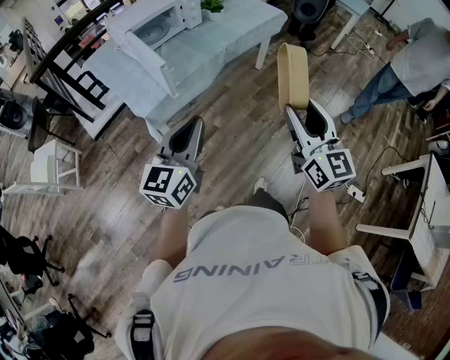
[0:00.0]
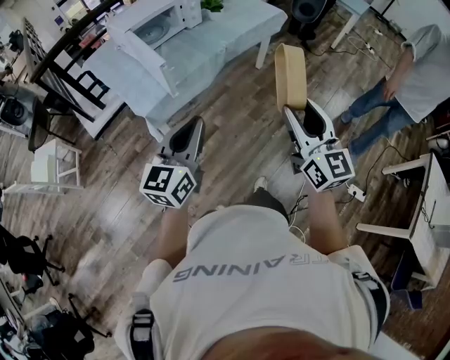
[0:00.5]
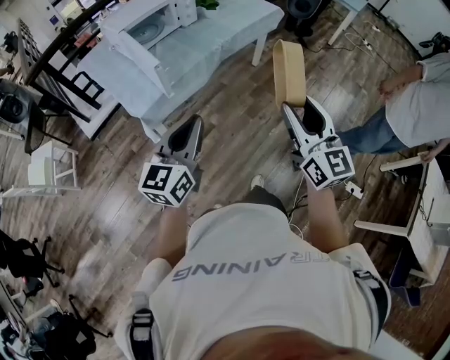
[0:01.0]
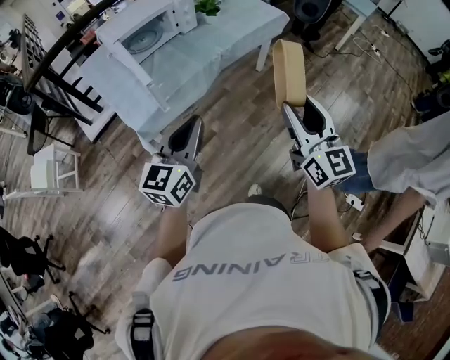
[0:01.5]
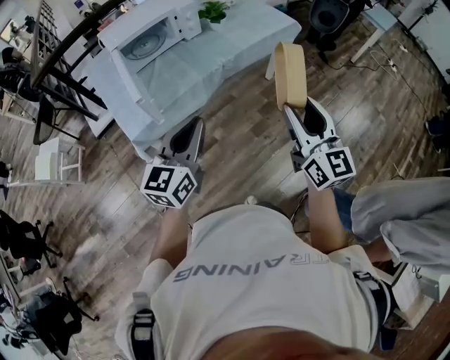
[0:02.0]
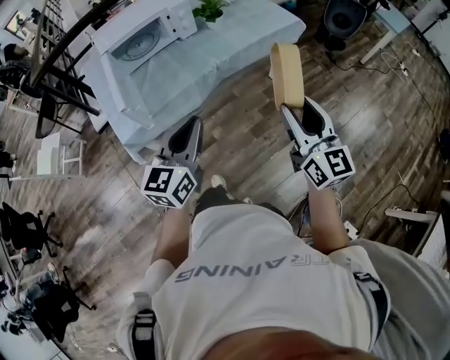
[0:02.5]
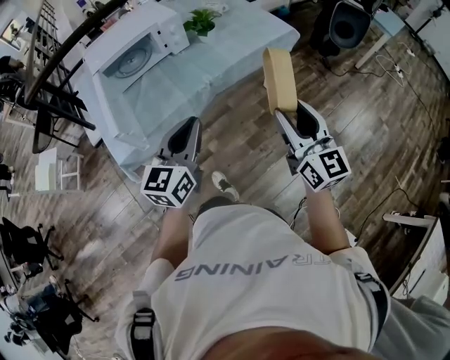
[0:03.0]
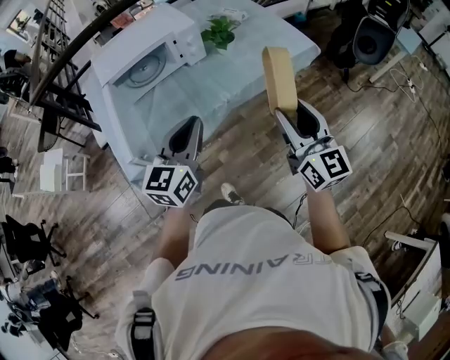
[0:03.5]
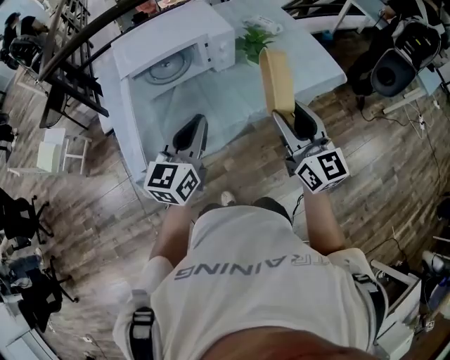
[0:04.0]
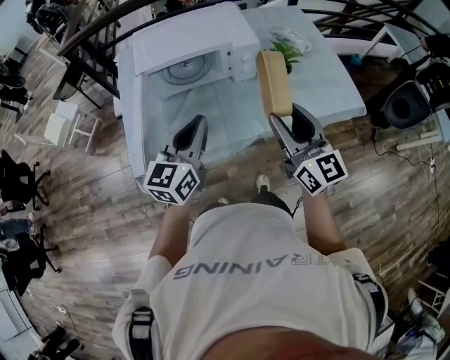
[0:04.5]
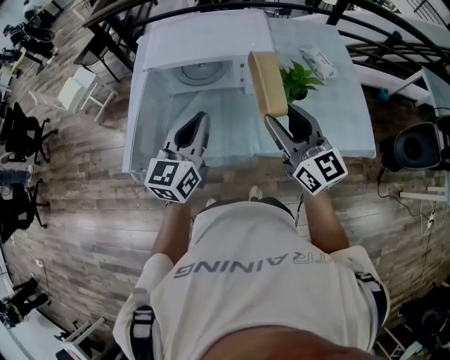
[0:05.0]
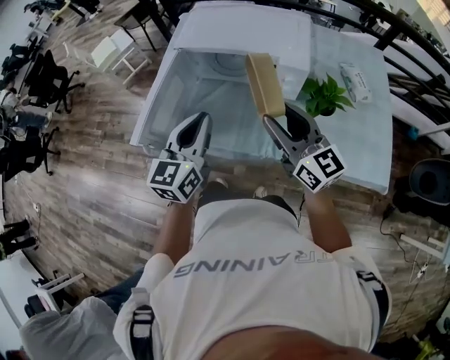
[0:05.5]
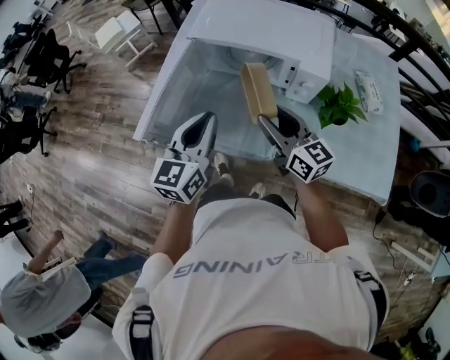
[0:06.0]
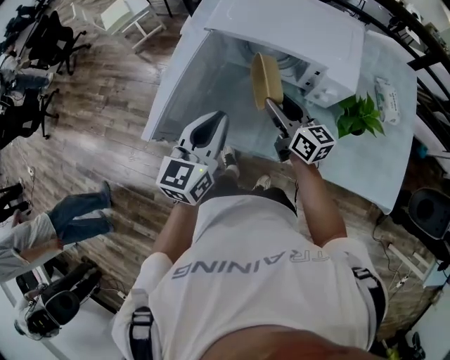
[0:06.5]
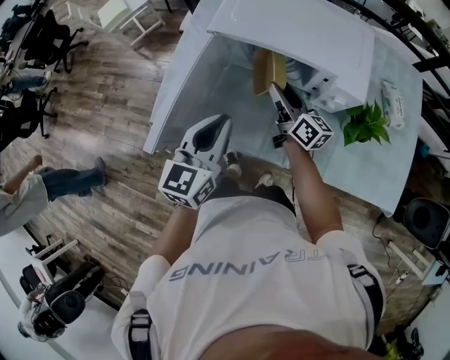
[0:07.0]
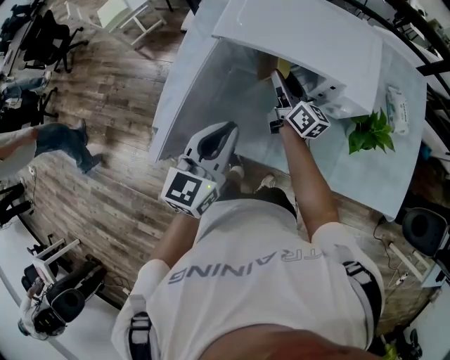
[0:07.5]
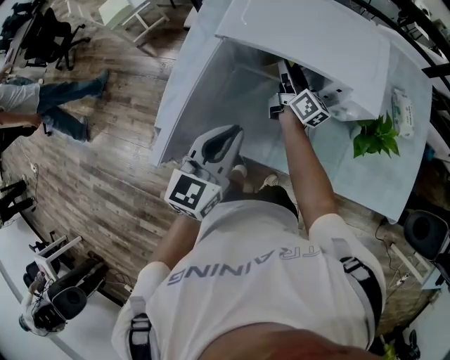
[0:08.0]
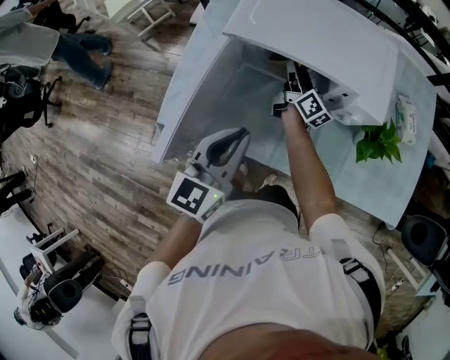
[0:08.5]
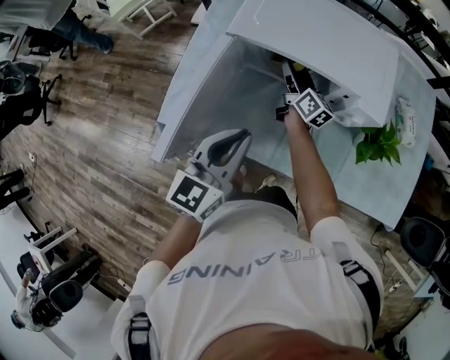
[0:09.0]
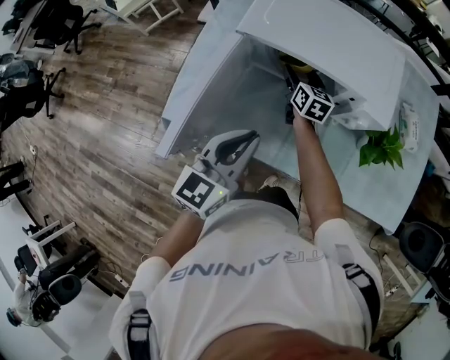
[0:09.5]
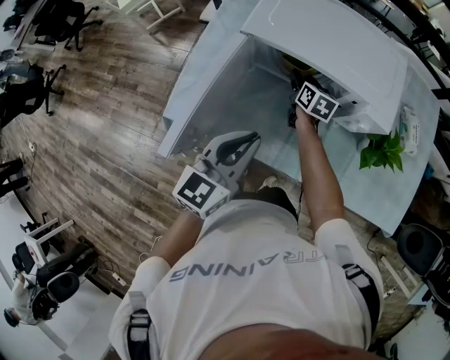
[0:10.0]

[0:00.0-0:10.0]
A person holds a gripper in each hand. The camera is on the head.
0:00.0 to 0:02.0: Both grippers travel together forward and to the right, about 20 cm.
0:02.0 to 0:04.0: The grippers both shift forward by approximately 30 cm.
0:04.0 to 0:06.0: The right gripper moves roughly 25 cm, and swivels roughly 60 degrees. The left gripper moves roughly 10 cm, and rotates roughly 40 degrees.
0:06.0 to 0:08.0: The left gripper travels forward by about 5 cm. The right gripper moves forward and downward, roughly 30 cm, and changes its angle by approximately 40 degrees.
0:08.0 to 0:10.0: The right gripper moves downward, about 5 cm, tilts its fingers roughly 30 degrees downward, and opens, then closes once more.

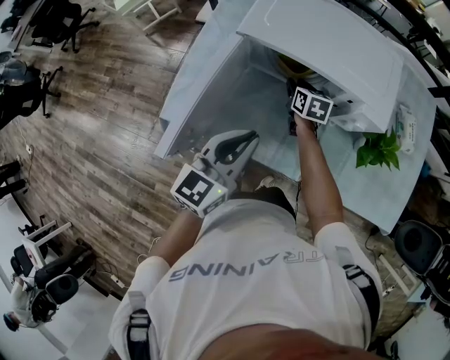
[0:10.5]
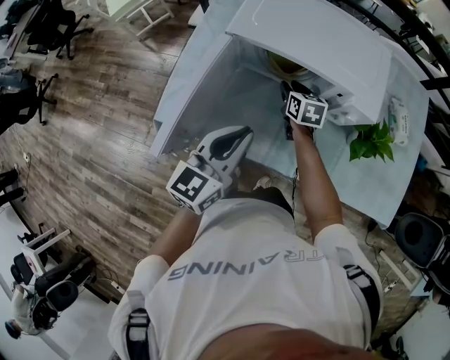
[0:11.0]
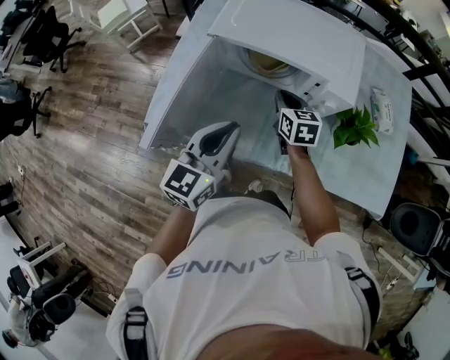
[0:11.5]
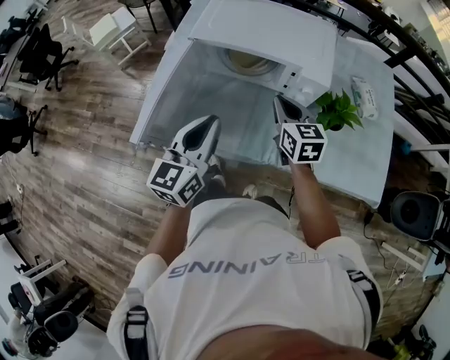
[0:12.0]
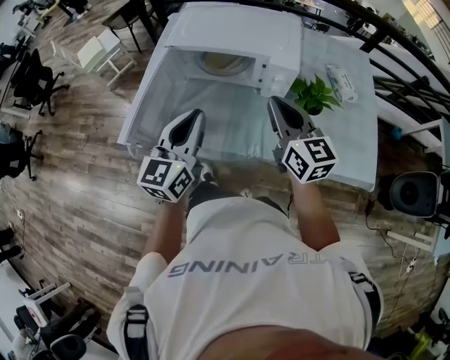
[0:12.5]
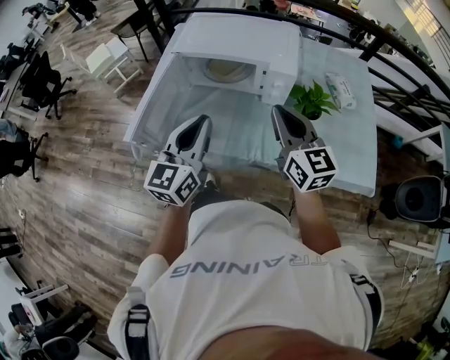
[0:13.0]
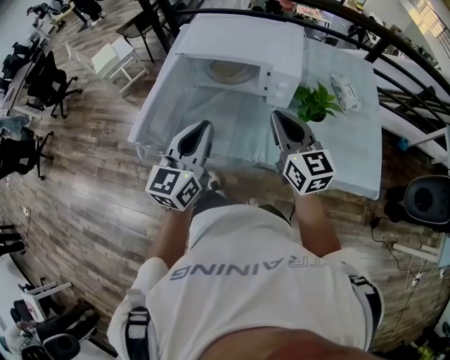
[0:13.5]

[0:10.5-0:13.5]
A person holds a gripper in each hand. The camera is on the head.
0:10.5 to 0:12.0: The right gripper is displaced upward, backward and to the right by roughly 25 cm, turns by some 20 degrees, and closes up. Meanwhile the left gripper shifts by some 5 cm.
0:12.0 to 0:13.5: The left gripper shifts approximately 5 cm backward; the right gripper moves backward and upward, roughly 15 cm.

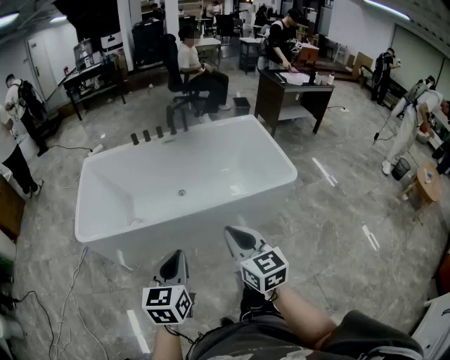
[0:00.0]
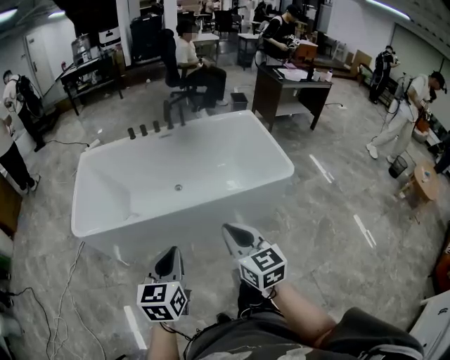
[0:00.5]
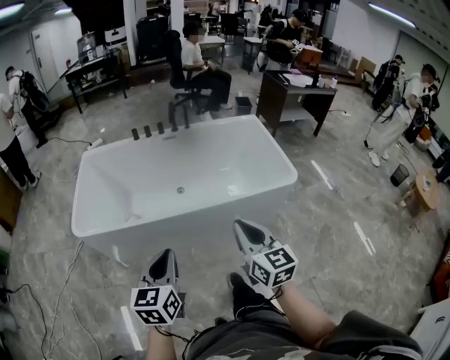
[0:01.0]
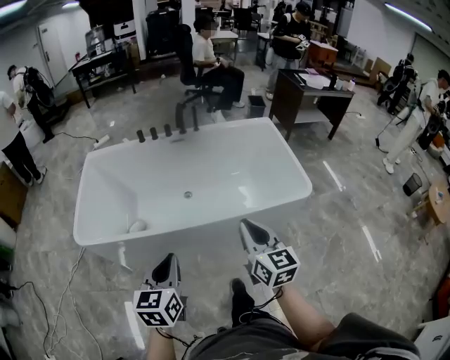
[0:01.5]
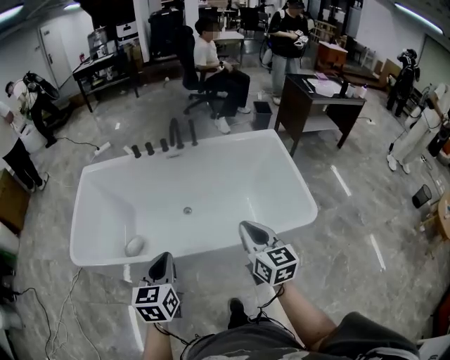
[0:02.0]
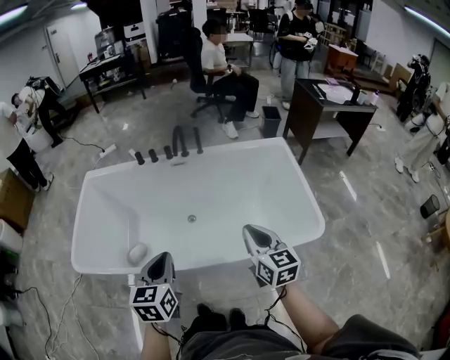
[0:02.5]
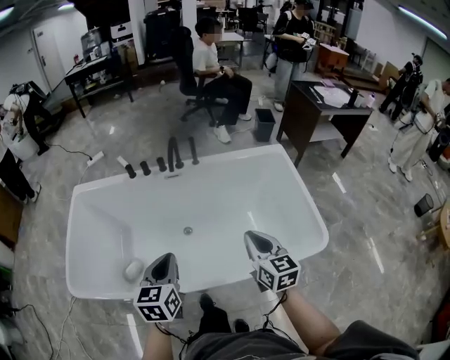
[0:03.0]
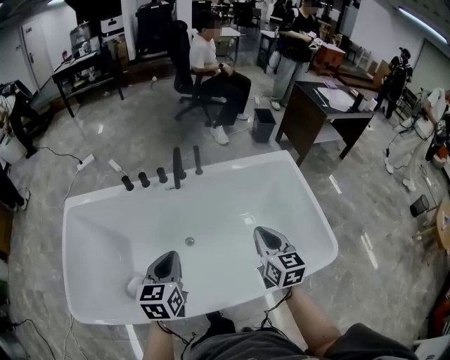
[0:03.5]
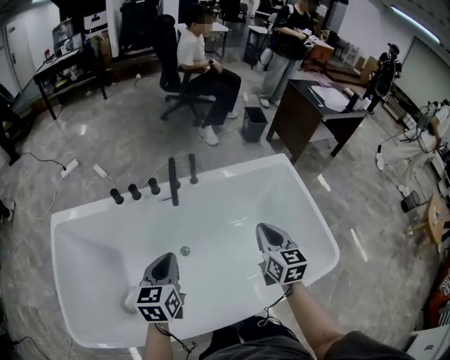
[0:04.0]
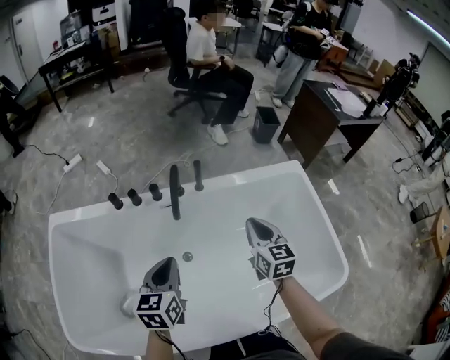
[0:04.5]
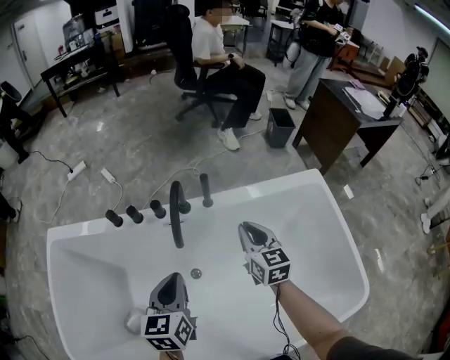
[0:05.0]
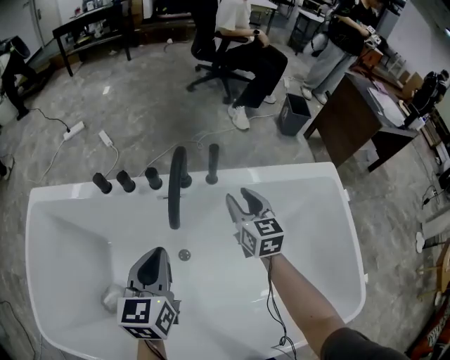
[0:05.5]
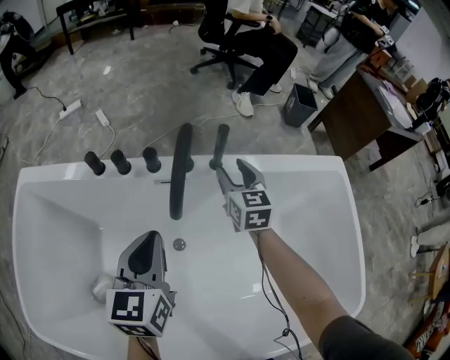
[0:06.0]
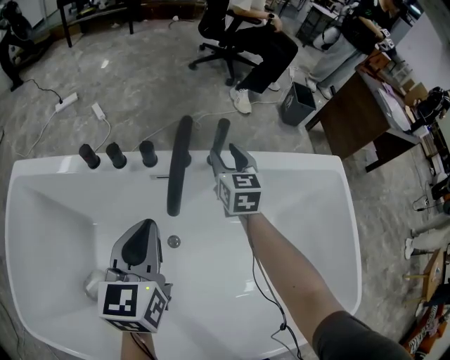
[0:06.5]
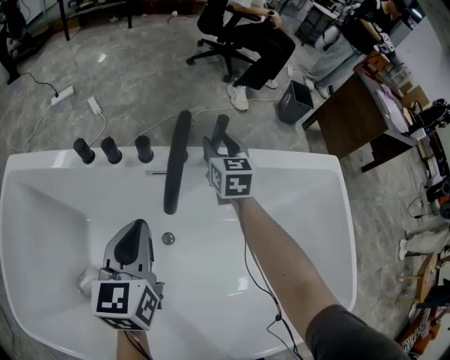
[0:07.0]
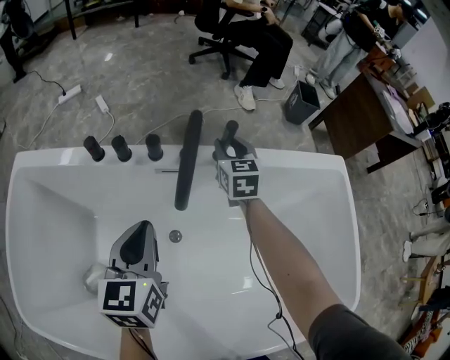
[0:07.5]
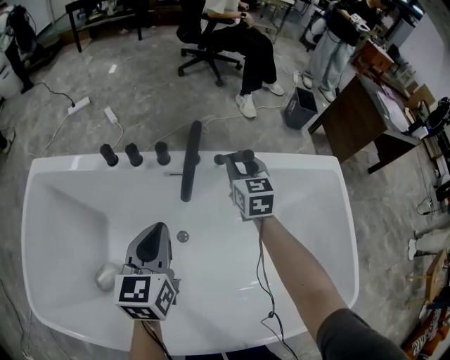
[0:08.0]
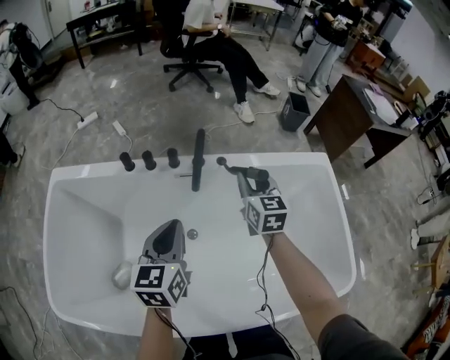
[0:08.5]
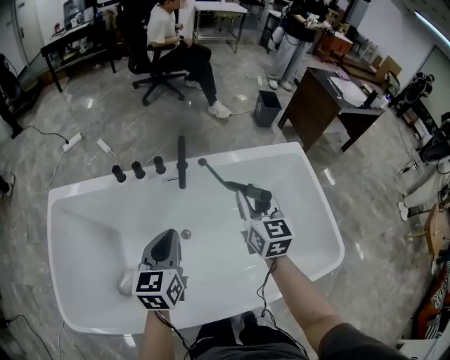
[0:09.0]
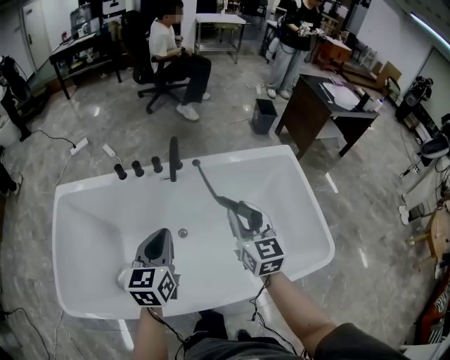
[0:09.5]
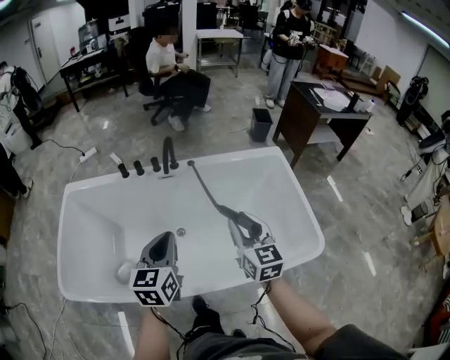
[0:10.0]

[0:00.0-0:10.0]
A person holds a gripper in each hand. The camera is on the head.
0:00.0 to 0:02.0: The right gripper moves forward and to the right, approximately 30 cm; the left gripper is displaced forward by about 25 cm.
0:02.0 to 0:04.0: Both grippers travel together forward, some 40 cm.
0:04.0 to 0:06.0: The left gripper travels forward and downward by about 20 cm, while the right gripper travels forward and downward by roughly 40 cm, and opens.
0:06.0 to 0:08.0: The right gripper goes forward and returns, roughly 5 cm each way, and closes.
0:08.0 to 0:10.0: The right gripper moves backward and upward, approximately 50 cm. The left gripper shifts some 35 cm backward and upward.

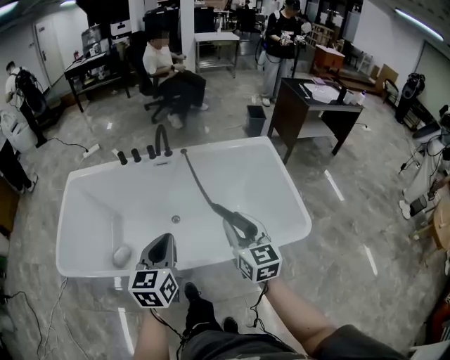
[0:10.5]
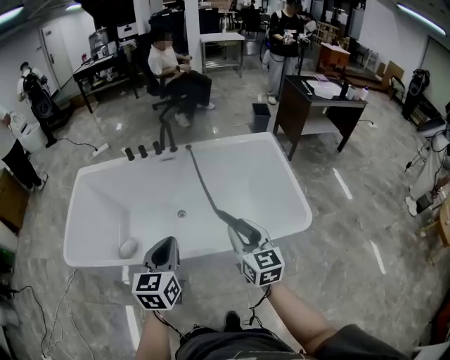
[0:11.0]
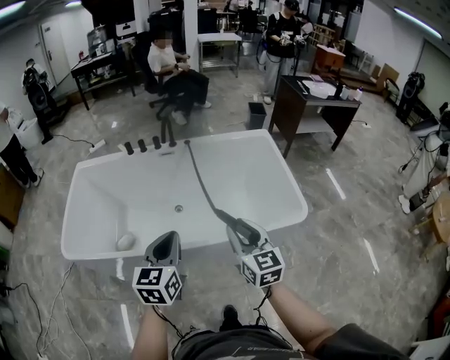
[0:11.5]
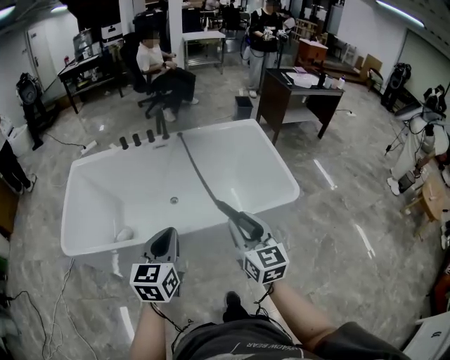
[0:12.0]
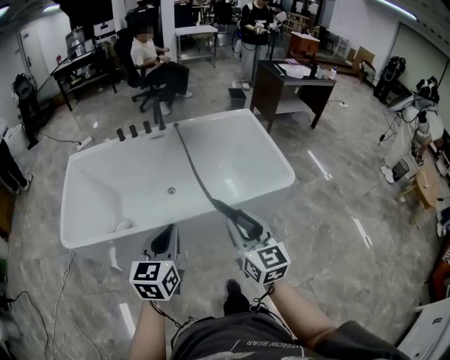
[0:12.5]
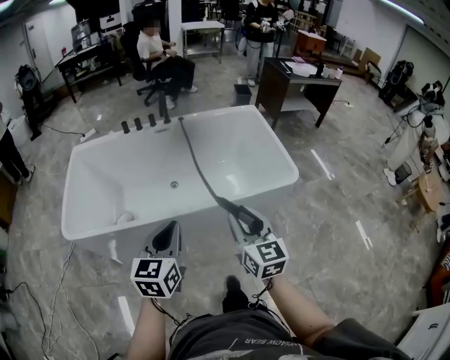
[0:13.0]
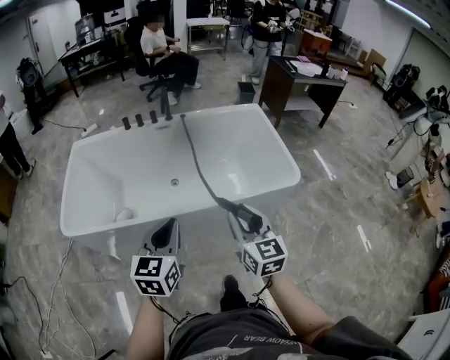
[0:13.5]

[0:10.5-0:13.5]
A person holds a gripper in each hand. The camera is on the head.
0:10.5 to 0:12.0: Both grippers move backward, roughly 20 cm.
